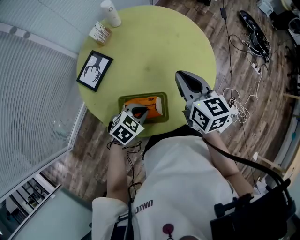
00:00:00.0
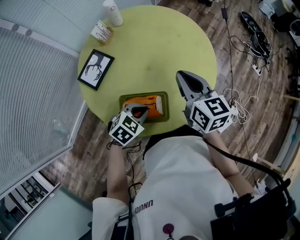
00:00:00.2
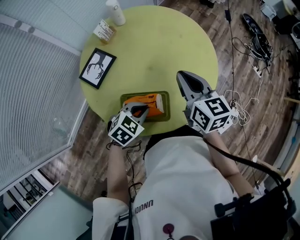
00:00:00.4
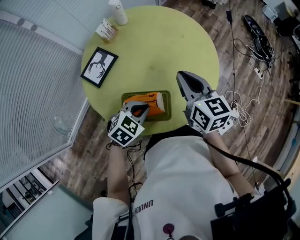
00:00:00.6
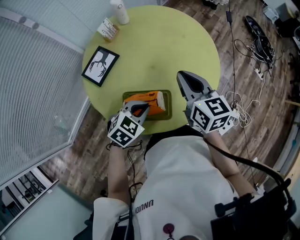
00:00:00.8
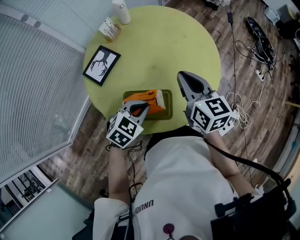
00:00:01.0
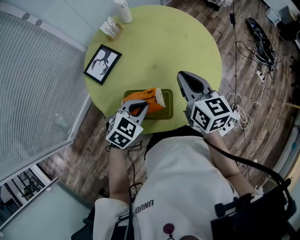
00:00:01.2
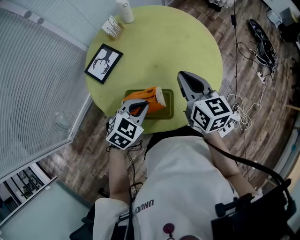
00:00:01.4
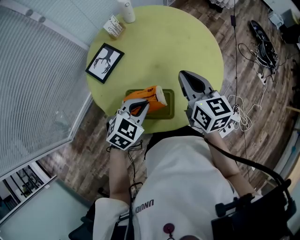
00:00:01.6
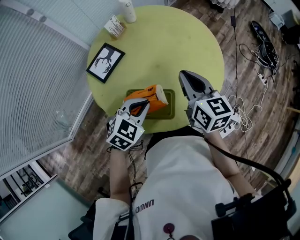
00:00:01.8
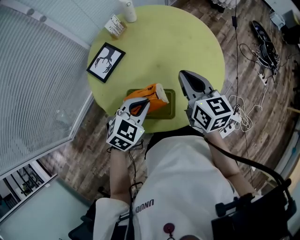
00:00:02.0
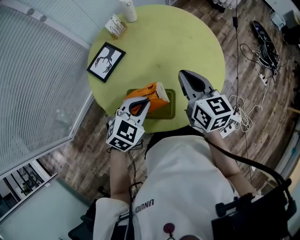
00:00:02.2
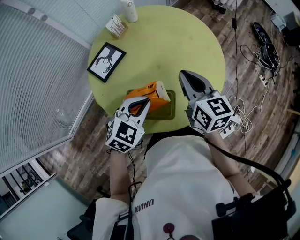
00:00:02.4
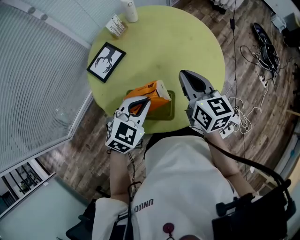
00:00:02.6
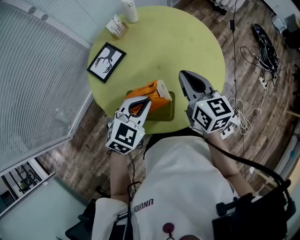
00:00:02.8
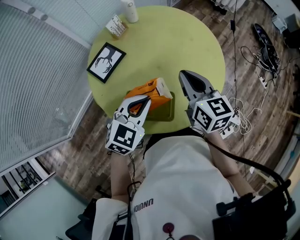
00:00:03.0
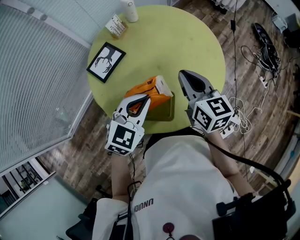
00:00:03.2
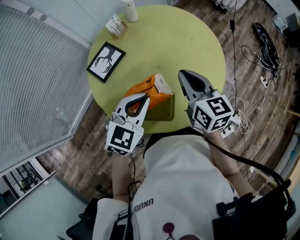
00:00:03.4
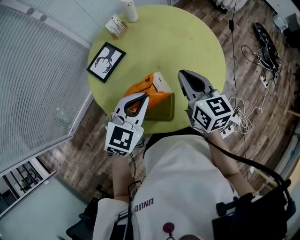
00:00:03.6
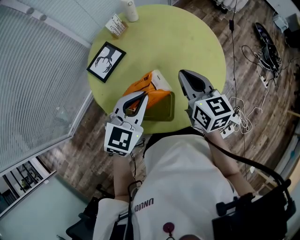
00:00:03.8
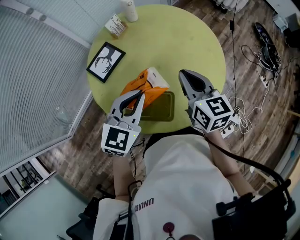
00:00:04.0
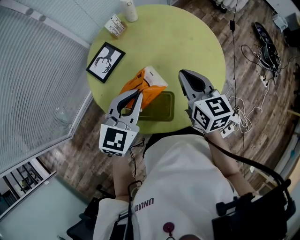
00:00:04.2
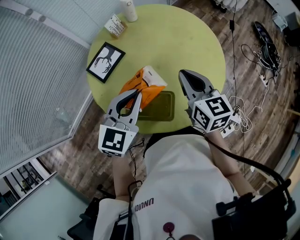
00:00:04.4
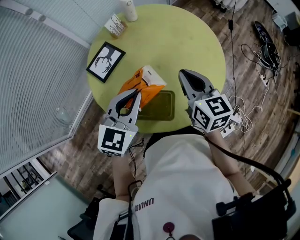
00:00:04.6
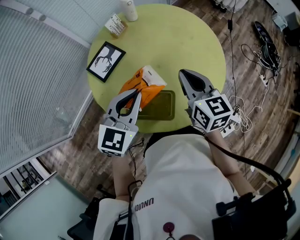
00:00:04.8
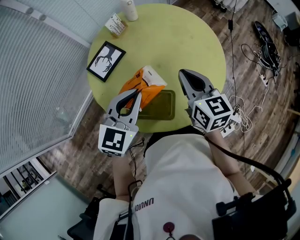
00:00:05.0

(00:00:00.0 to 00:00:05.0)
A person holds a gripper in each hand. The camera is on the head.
00:00:00.0 - 00:00:01.6: The left gripper moves upward, some 5 cm.
00:00:01.6 - 00:00:03.4: The left gripper shifts about 10 cm upward.
00:00:03.4 - 00:00:05.0: The grippers move only a little.

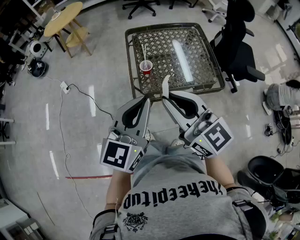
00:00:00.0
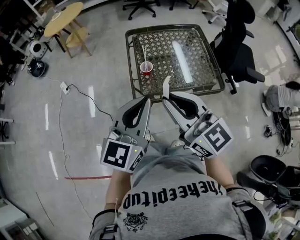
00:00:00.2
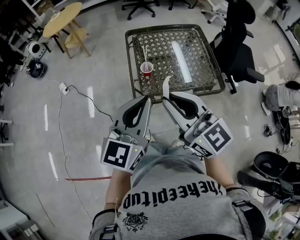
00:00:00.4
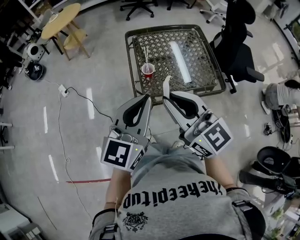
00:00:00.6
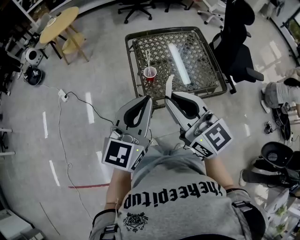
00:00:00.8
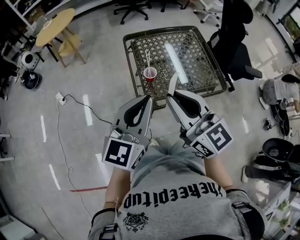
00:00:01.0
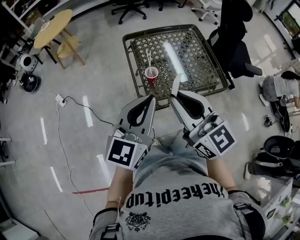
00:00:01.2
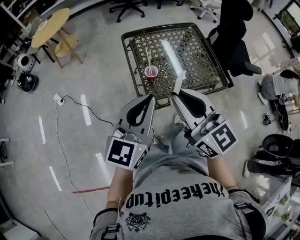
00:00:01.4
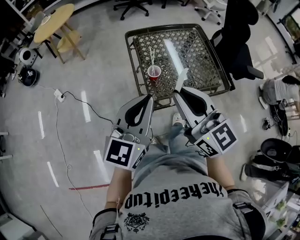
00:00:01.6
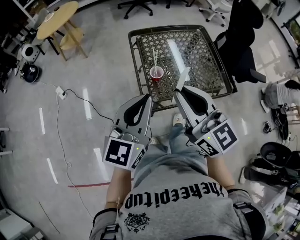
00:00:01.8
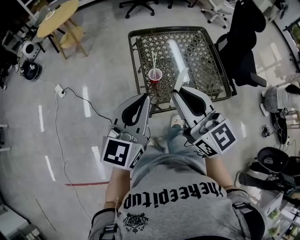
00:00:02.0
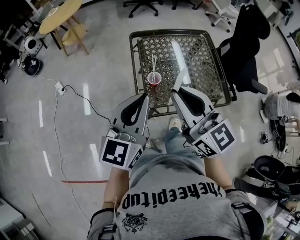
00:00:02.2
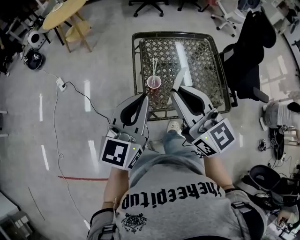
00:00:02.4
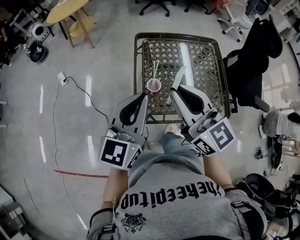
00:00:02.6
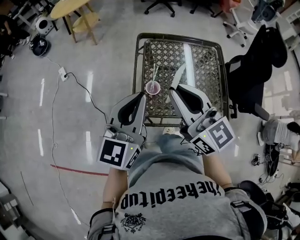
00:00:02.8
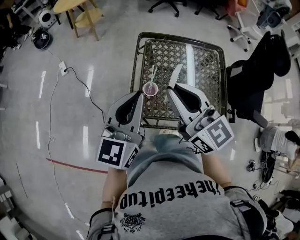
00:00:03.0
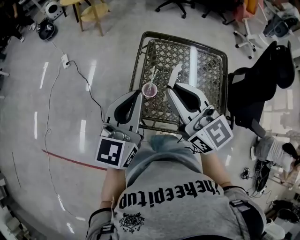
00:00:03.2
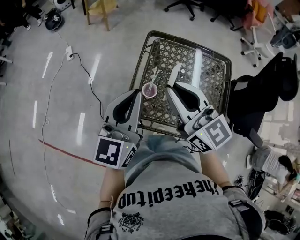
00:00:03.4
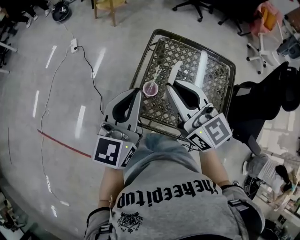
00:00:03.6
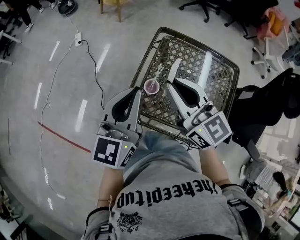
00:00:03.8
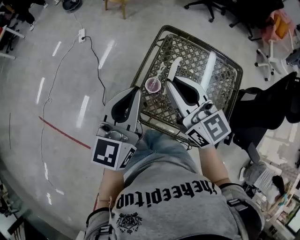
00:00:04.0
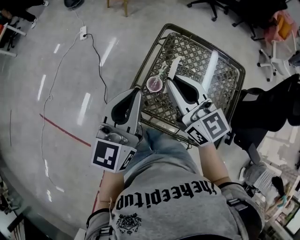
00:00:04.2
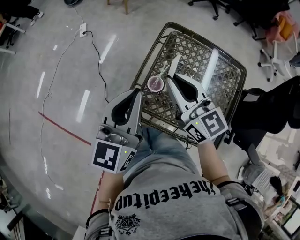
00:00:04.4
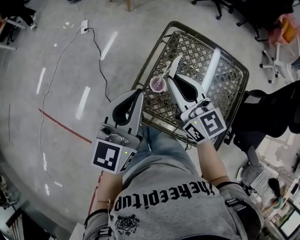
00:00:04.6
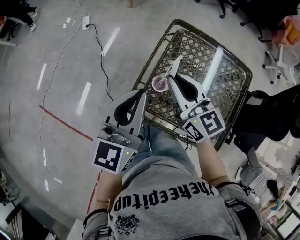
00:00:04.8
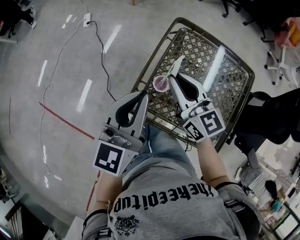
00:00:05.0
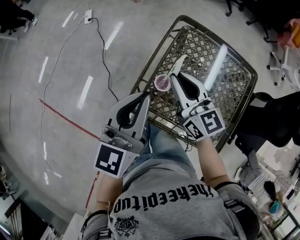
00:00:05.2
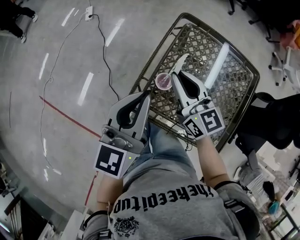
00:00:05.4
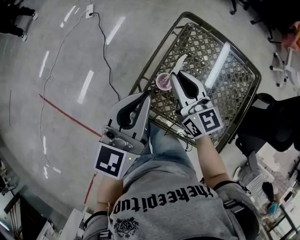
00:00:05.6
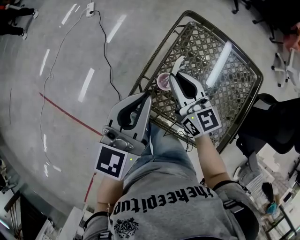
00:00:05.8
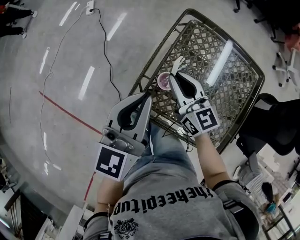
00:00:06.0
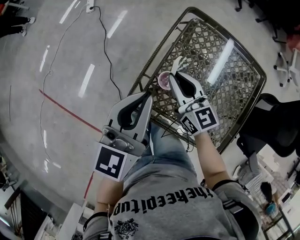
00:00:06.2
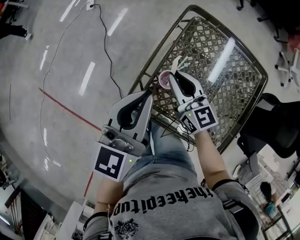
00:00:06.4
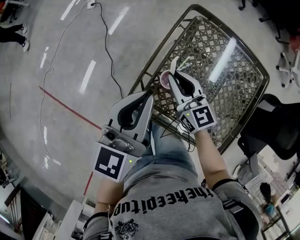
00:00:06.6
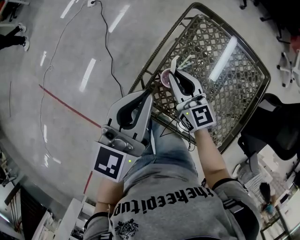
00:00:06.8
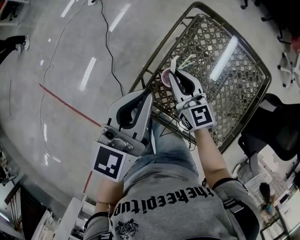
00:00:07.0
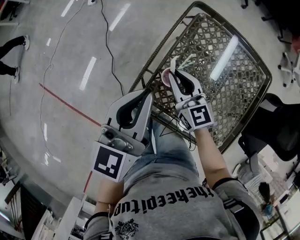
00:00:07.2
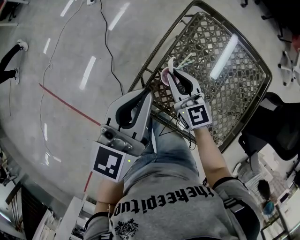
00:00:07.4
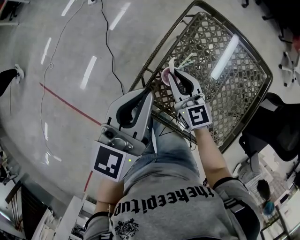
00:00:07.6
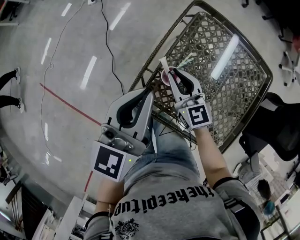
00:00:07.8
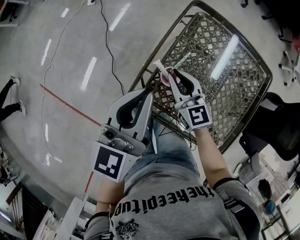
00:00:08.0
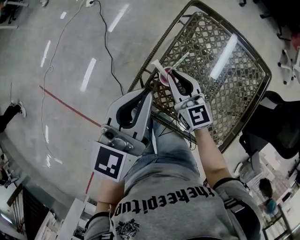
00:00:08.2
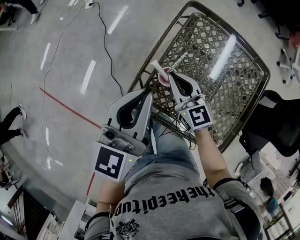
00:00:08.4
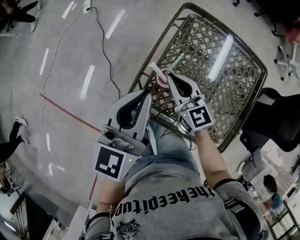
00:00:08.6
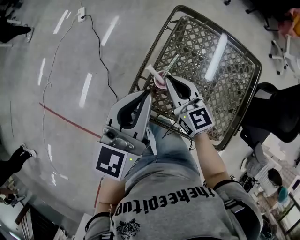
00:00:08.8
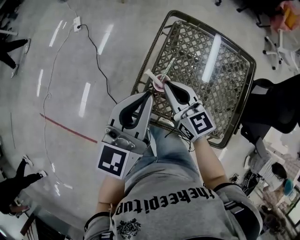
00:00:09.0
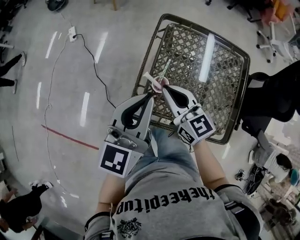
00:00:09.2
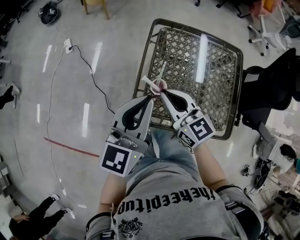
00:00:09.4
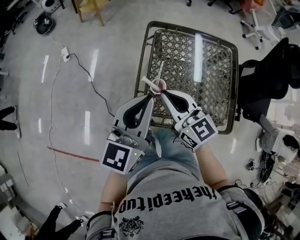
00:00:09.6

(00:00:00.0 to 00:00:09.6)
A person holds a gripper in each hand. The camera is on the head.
00:00:00.0 - 00:00:01.6: The right gripper moves forward, approximately 5 cm, while the left gripper goes roughly 10 cm to the left and forward.
00:00:01.6 - 00:00:03.2: The left gripper changes place by approximately 15 cm, and swivels some 30 degrees; the right gripper ends up roughly 20 cm from where it was, and rotates approximately 30 degrees.
00:00:03.2 - 00:00:04.8: The right gripper travels downward and forward by some 10 cm.
00:00:04.8 - 00:00:06.4: The right gripper shifts some 15 cm downward; the left gripper shifts about 5 cm downward.
00:00:06.4 - 00:00:08.0: The grippers move only a little.
00:00:08.0 - 00:00:09.6: The right gripper shifts some 15 cm upward and backward, while the left gripper shifts roughly 5 cm upward, and changes its angle by some 20 degrees.

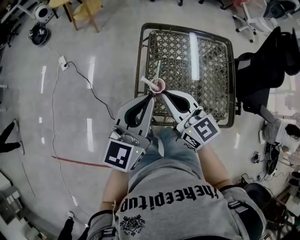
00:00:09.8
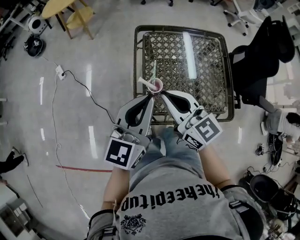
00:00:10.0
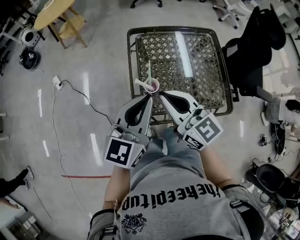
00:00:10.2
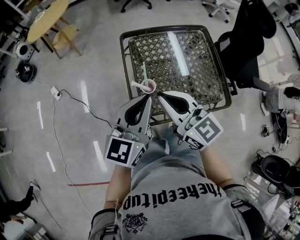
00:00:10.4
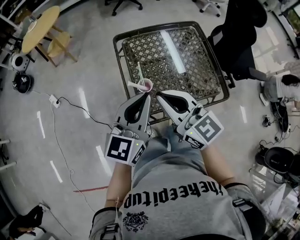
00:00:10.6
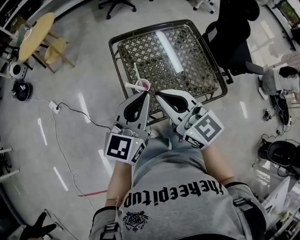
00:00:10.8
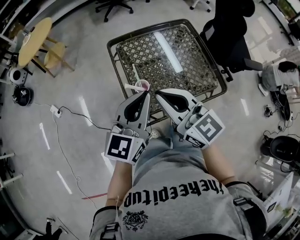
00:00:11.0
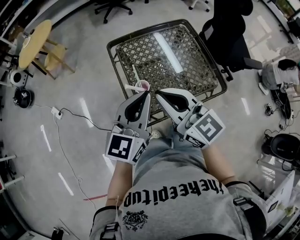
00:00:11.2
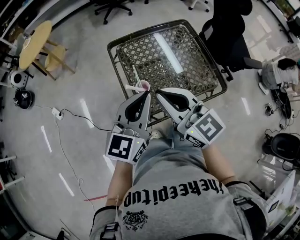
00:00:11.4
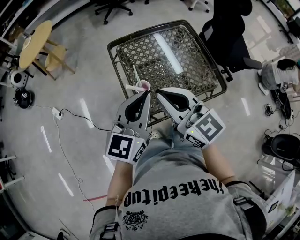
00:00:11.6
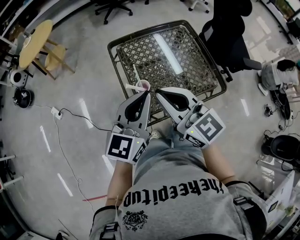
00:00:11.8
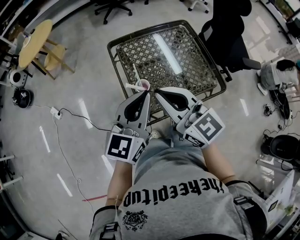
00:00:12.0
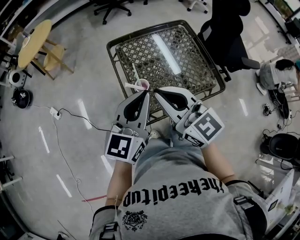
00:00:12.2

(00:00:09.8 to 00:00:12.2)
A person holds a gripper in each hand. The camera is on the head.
00:00:09.8 - 00:00:11.0: The right gripper shifts some 10 cm upward and backward. The left gripper turns by some 20 degrees.
00:00:11.0 - 00:00:12.2: There are only small adjustments of the grippers.

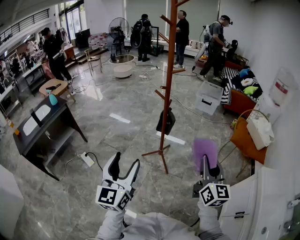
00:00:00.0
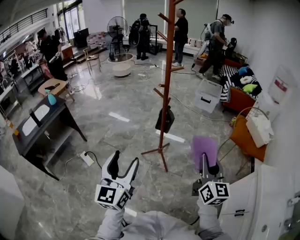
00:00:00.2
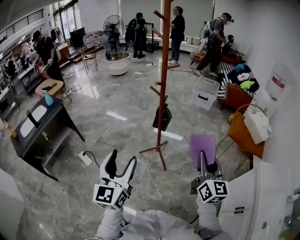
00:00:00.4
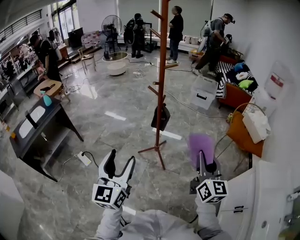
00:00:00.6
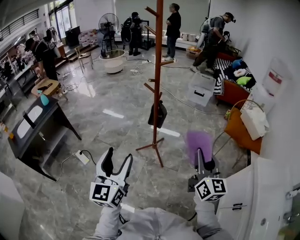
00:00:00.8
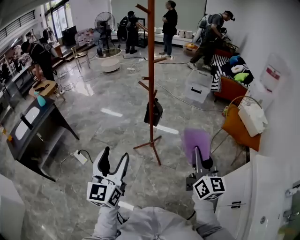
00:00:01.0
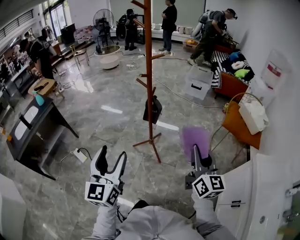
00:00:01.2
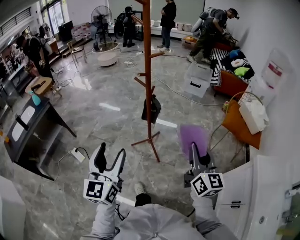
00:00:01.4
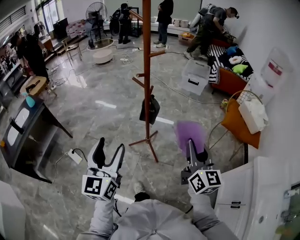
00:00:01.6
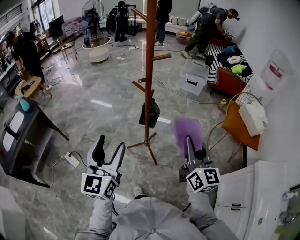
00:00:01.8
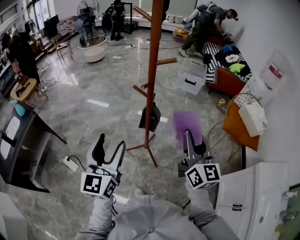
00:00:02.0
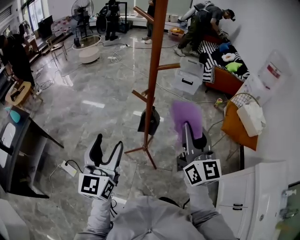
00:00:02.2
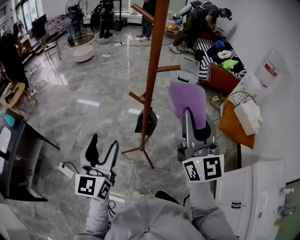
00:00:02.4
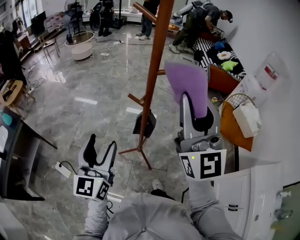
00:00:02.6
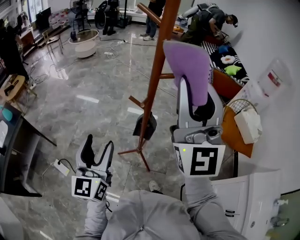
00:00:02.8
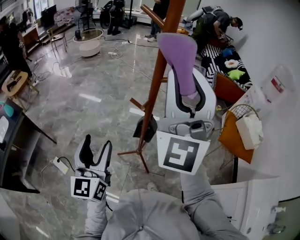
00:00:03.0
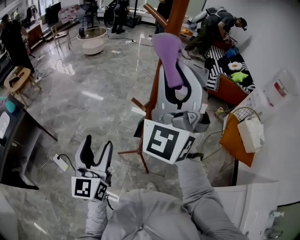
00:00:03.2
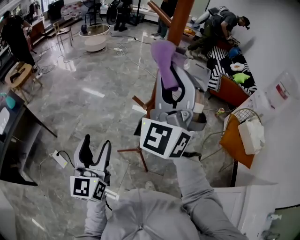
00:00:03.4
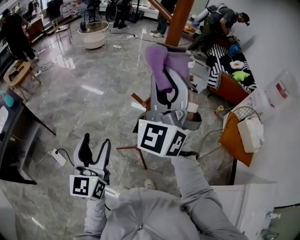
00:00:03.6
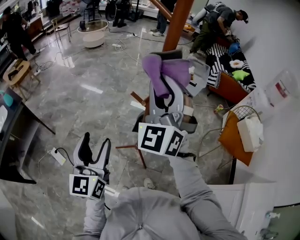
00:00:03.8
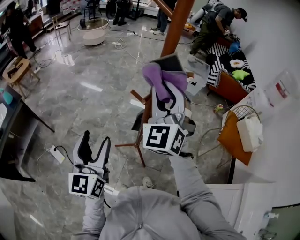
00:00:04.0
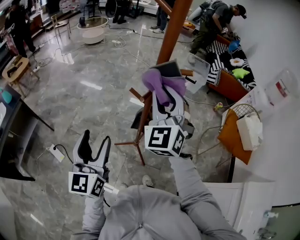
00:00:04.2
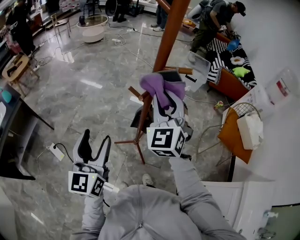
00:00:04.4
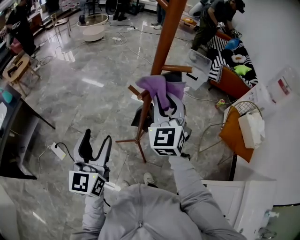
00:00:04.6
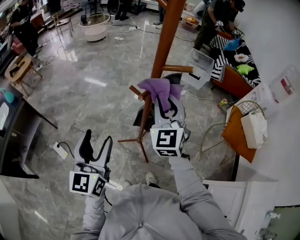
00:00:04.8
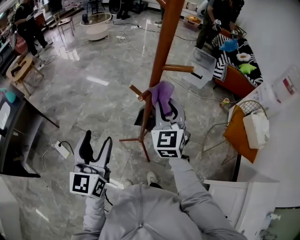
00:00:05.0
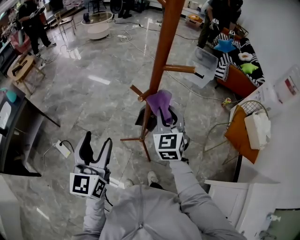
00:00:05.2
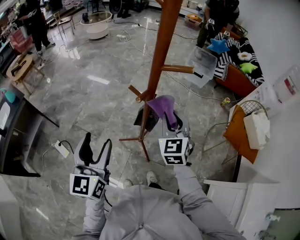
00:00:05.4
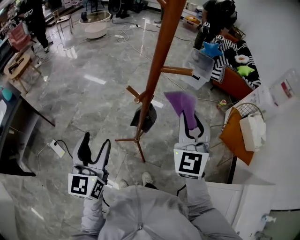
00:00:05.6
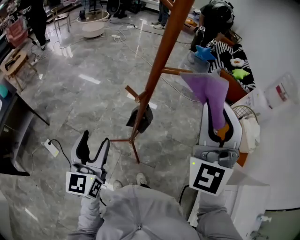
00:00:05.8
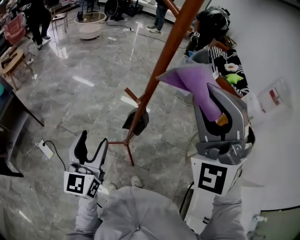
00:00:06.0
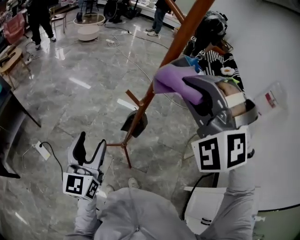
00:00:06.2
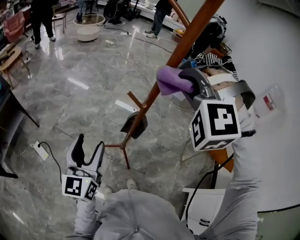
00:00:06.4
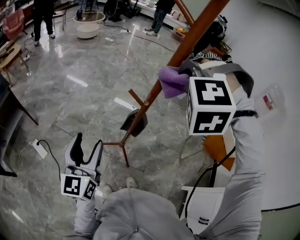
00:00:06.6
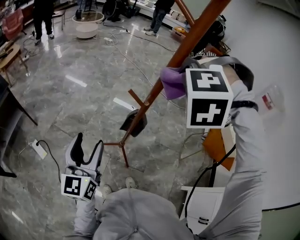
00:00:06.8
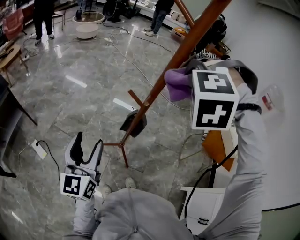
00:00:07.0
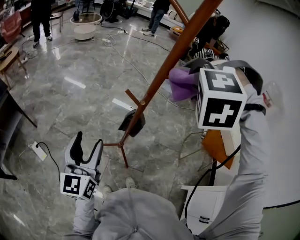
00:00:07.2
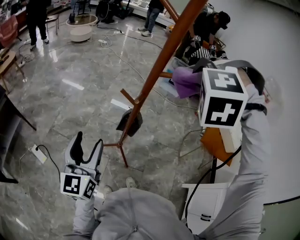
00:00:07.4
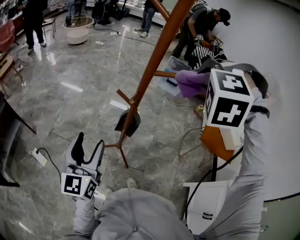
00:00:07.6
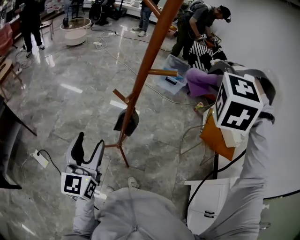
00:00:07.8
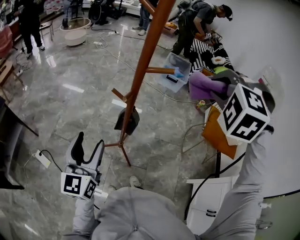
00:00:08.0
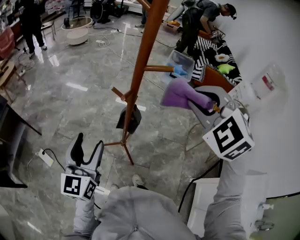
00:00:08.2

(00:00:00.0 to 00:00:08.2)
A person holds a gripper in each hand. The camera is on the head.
00:00:00.0 - 00:00:01.6: Both grippers travel together forward, roughly 10 cm.
00:00:01.6 - 00:00:03.2: The left gripper heads forward, covering approximately 20 cm; the right gripper is displaced forward, upward and to the left by about 40 cm, and twists approximately 60 degrees counterclockwise, seen from behind.
00:00:03.2 - 00:00:05.0: The right gripper goes roughly 25 cm downward, and points its fingers some 30 degrees further downward.
00:00:05.0 - 00:00:06.6: The right gripper moves up and down over approximately 30 cm, changing direction 2 times, and rotates around the line of its fingers by about 80 degrees, counterclockwise from behind.
00:00:06.6 - 00:00:08.2: The left gripper goes roughly 5 cm to the right. The right gripper goes roughly 10 cm to the right, and rotates around the line of its fingers by some 40 degrees, clockwise from behind.
